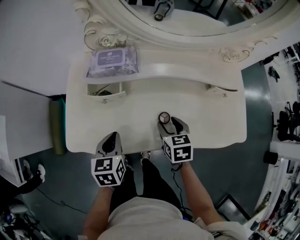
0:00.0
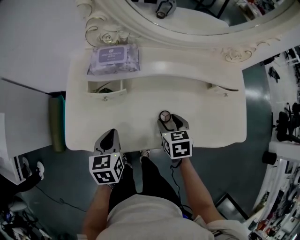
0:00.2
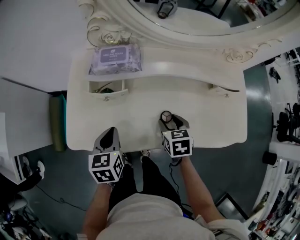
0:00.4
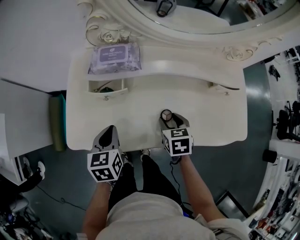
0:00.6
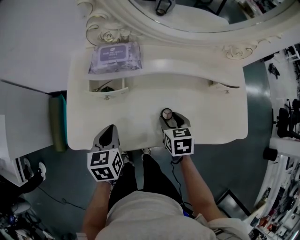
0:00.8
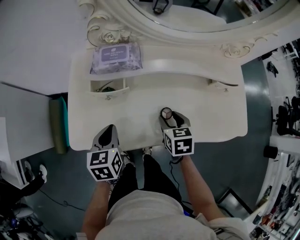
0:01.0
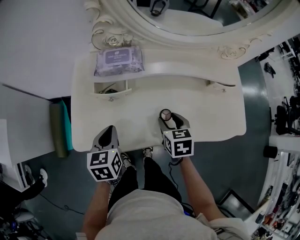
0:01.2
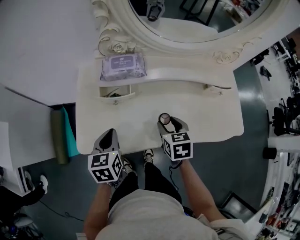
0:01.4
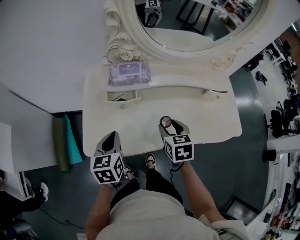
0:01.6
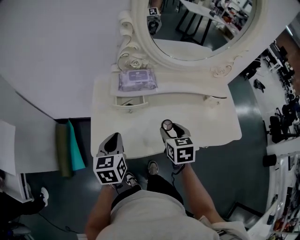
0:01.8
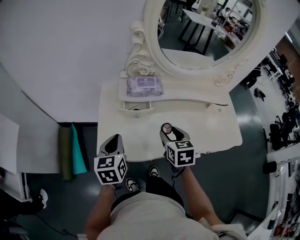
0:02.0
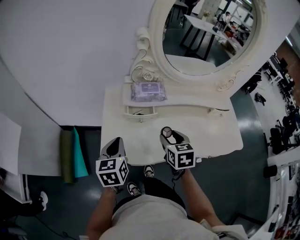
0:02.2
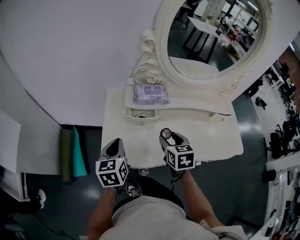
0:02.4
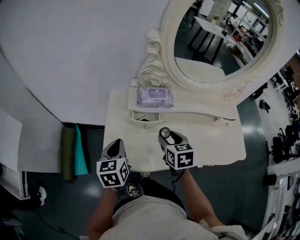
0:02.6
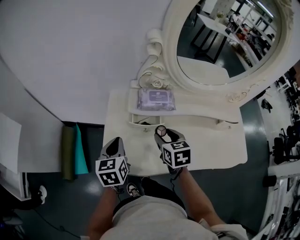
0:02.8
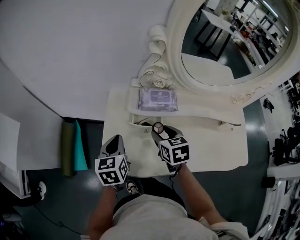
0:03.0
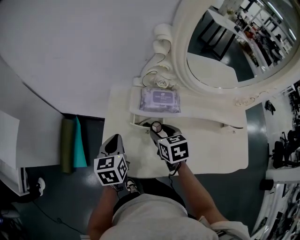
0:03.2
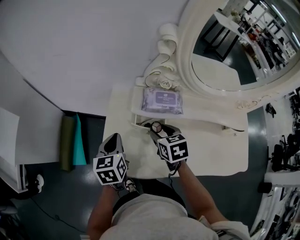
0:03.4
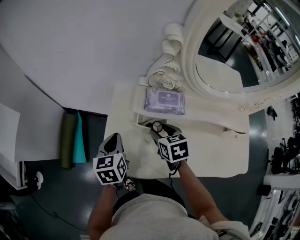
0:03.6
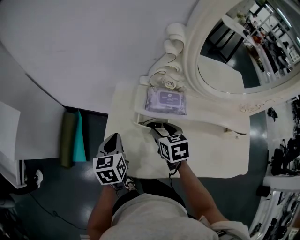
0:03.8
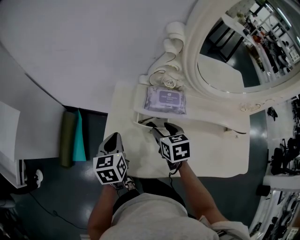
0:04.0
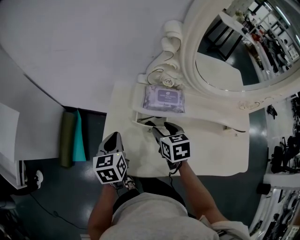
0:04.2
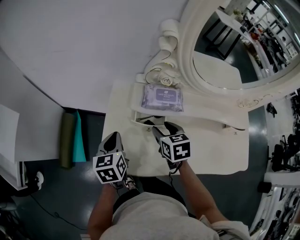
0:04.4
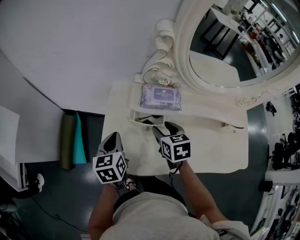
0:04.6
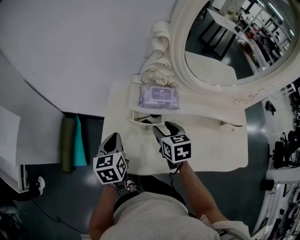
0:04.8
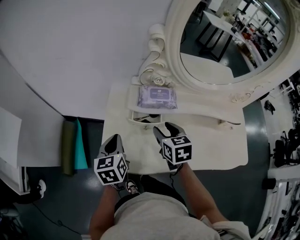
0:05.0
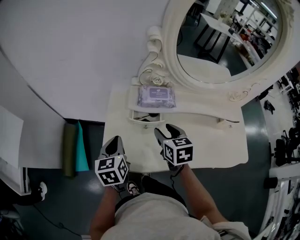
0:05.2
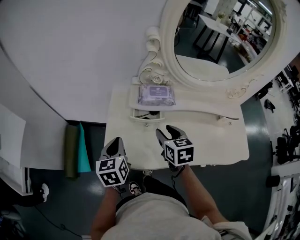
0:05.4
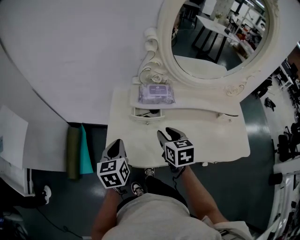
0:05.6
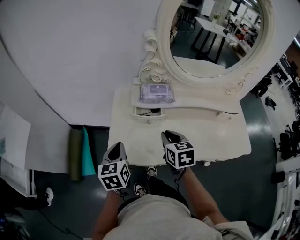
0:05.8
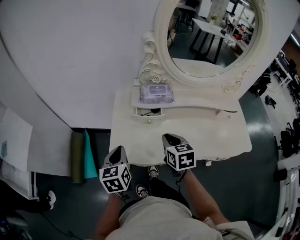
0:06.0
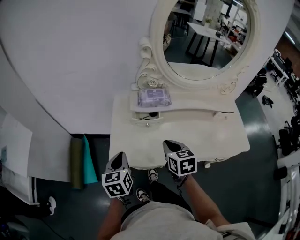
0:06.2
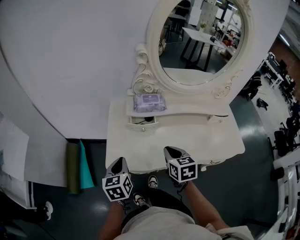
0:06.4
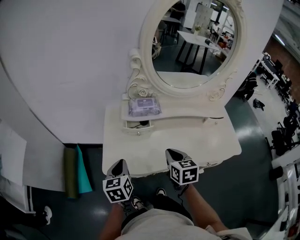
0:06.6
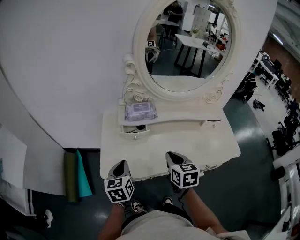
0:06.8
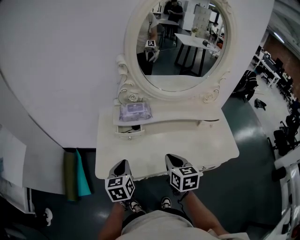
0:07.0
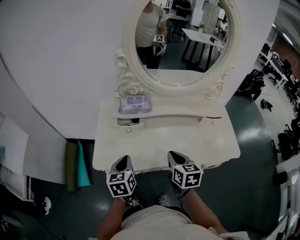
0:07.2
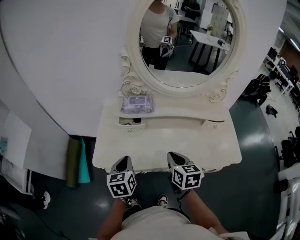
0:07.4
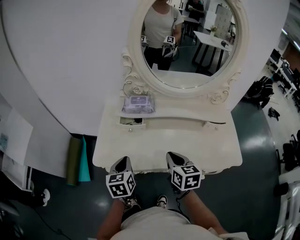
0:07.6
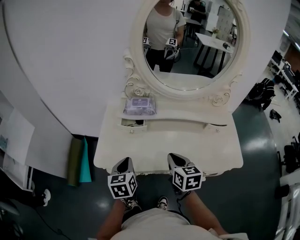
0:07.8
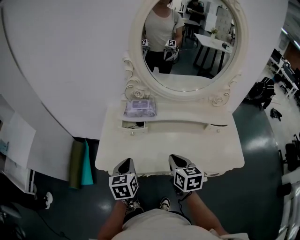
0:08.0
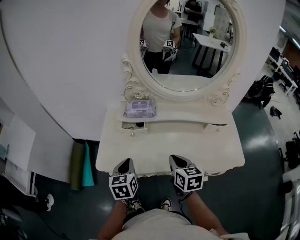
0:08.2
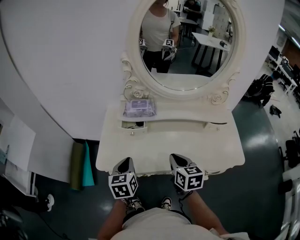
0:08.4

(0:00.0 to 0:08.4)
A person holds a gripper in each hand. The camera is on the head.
0:00.0 - 0:01.4: The right gripper shifts by about 5 cm; the left gripper goes roughly 5 cm to the left.
0:01.4 - 0:02.8: The right gripper is displaced to the left, forward and upward by roughly 15 cm; the left gripper shifts some 10 cm to the left.
0:02.8 - 0:04.2: The right gripper shifts roughly 5 cm forward.
0:04.2 - 0:05.6: The right gripper heads backward and upward, covering some 10 cm; the left gripper travels backward by about 10 cm.
0:05.6 - 0:07.0: The right gripper heads backward and to the right, covering roughly 15 cm, and closes. The left gripper heads to the right, covering roughly 10 cm.
0:07.0 - 0:08.4: The grippers make only small movements.

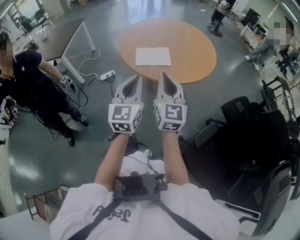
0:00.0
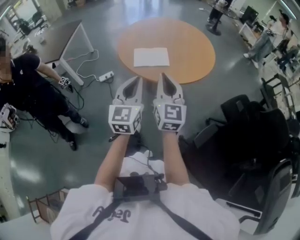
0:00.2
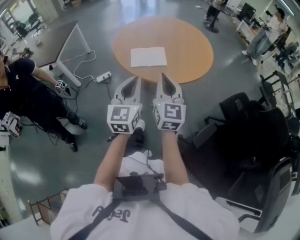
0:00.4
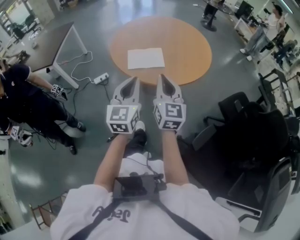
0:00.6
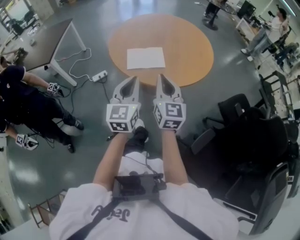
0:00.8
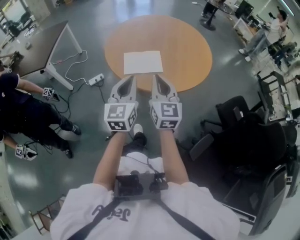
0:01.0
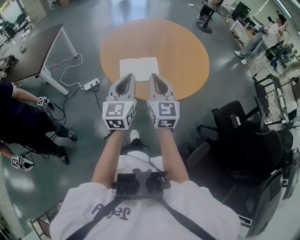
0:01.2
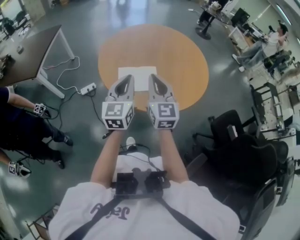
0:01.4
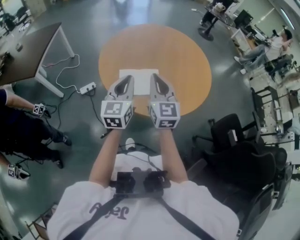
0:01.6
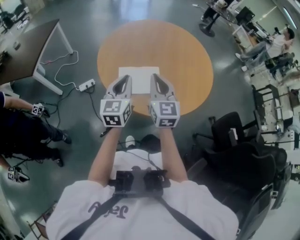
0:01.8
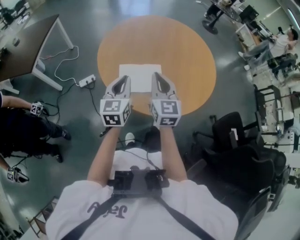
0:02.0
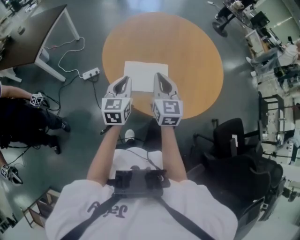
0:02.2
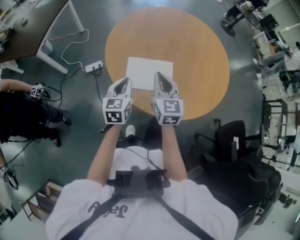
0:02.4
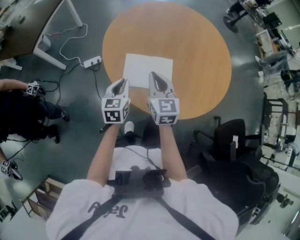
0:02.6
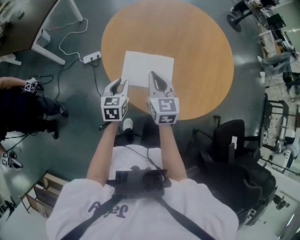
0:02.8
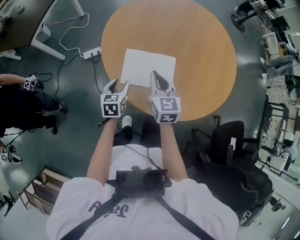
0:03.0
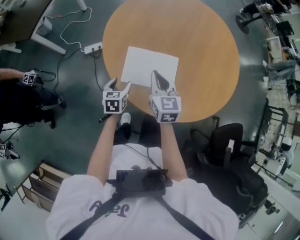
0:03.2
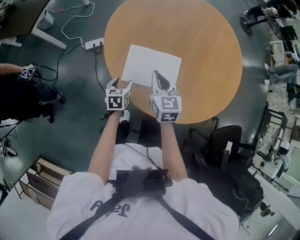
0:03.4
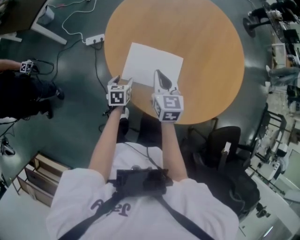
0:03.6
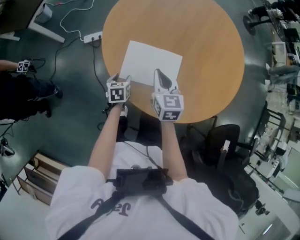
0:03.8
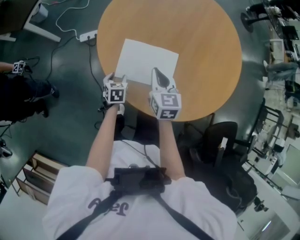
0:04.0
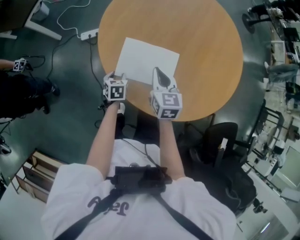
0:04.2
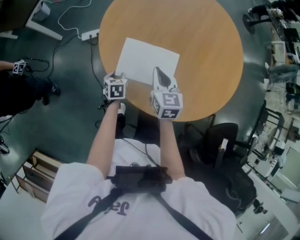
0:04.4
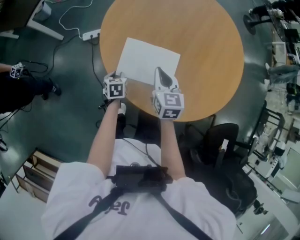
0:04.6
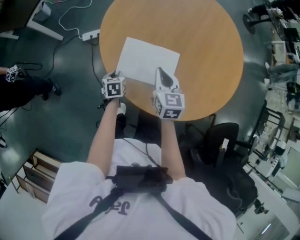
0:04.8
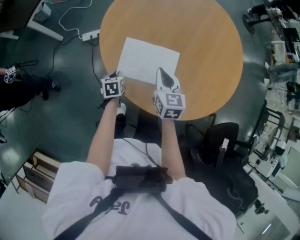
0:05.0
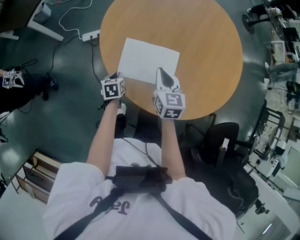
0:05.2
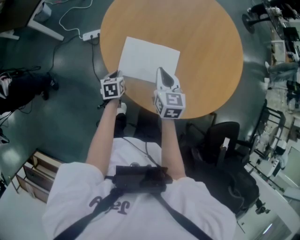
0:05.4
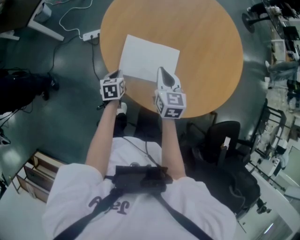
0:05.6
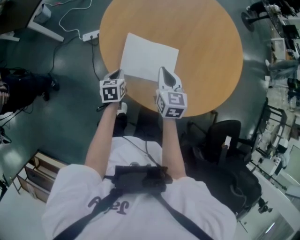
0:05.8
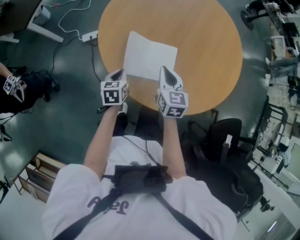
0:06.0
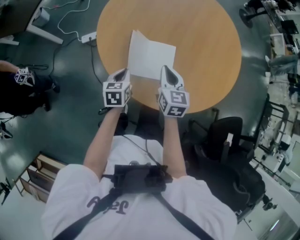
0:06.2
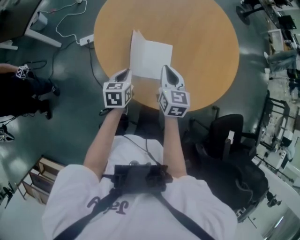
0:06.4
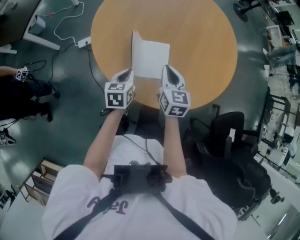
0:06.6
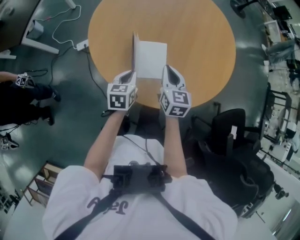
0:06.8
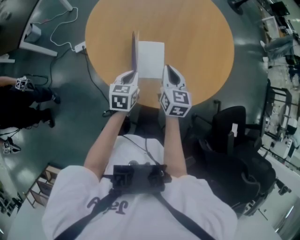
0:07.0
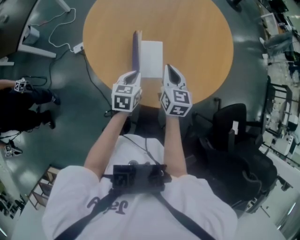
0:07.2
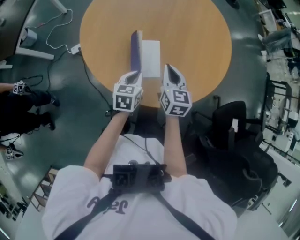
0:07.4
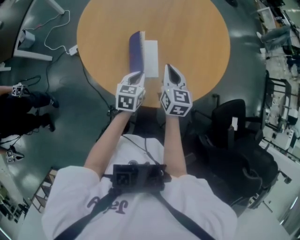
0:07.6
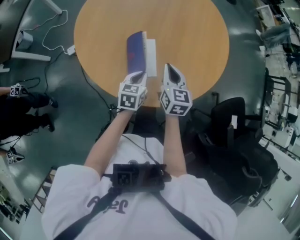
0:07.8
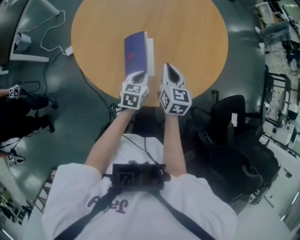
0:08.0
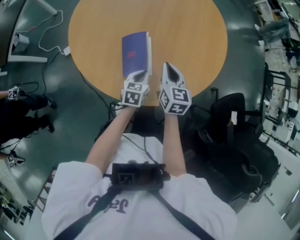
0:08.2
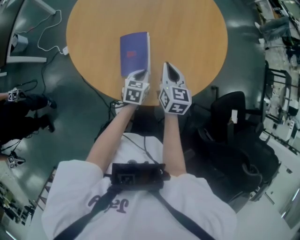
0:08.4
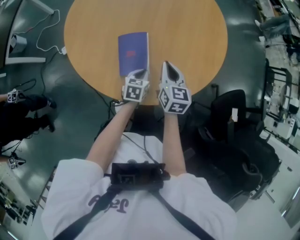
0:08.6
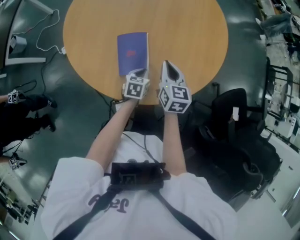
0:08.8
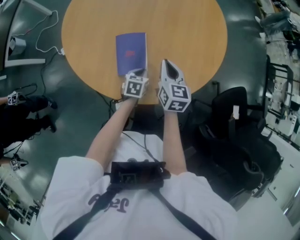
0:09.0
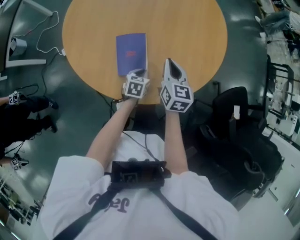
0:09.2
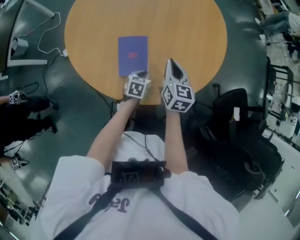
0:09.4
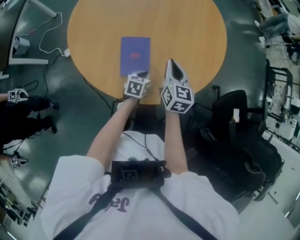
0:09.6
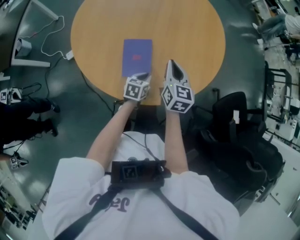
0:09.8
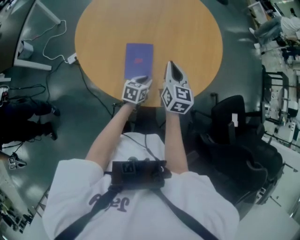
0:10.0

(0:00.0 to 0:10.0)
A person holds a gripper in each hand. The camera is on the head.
0:00.0 - 0:01.4: The grippers both shift forward by about 25 cm.
0:01.4 - 0:02.8: The right gripper is displaced downward and forward by some 20 cm, and changes its angle by about 20 degrees; the left gripper goes about 25 cm downward, and tips its fingers downward by roughly 30 degrees.
0:02.8 - 0:04.2: The left gripper travels downward by some 15 cm, rotates some 30 degrees, and opens its fingers, while the right gripper shifts roughly 5 cm downward.
0:04.2 - 0:05.8: The left gripper moves upward, some 5 cm, and closes.
0:05.8 - 0:07.2: The left gripper shifts some 15 cm to the right and upward, and turns by roughly 20 degrees. The right gripper goes about 10 cm to the right.
0:07.2 - 0:08.6: The right gripper shifts about 5 cm to the right, while the left gripper goes roughly 15 cm downward and to the right.
0:08.6 - 0:10.0: The right gripper shifts approximately 5 cm upward.

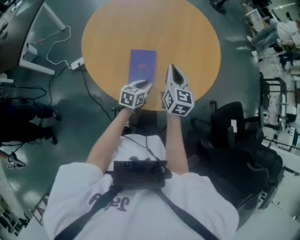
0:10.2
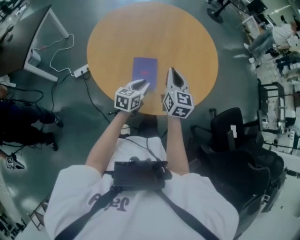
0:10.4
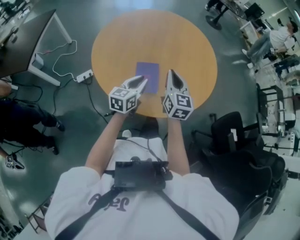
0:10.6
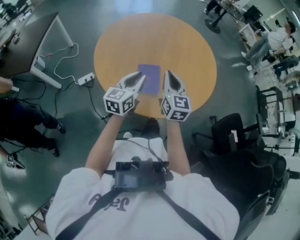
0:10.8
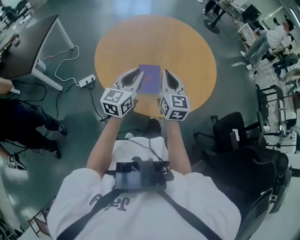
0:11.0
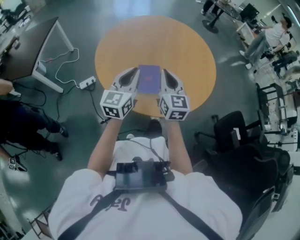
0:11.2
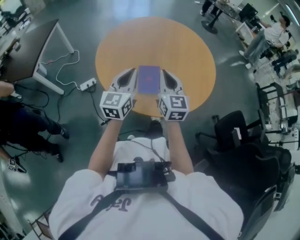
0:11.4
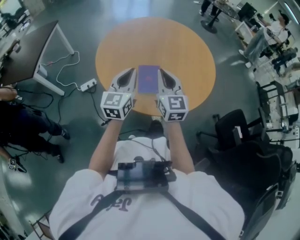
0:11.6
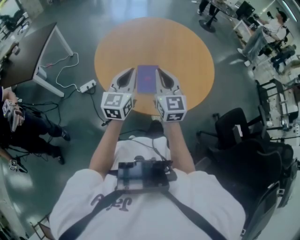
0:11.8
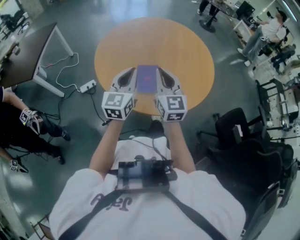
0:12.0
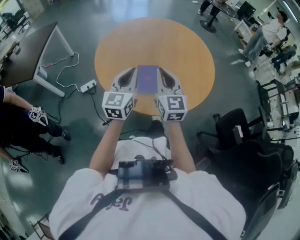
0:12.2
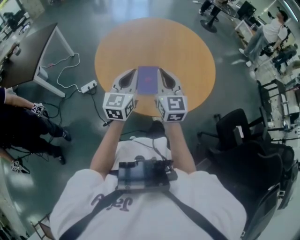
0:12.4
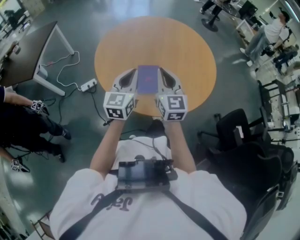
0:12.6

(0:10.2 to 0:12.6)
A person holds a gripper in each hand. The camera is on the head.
0:10.2 - 0:11.4: The right gripper goes roughly 15 cm upward, to the left and backward, while the left gripper heads upward and to the left, covering roughly 30 cm, and angles its fingers upward, by about 30 degrees.
0:11.4 - 0:12.6: The grippers stay close to where they were, moving slightly.

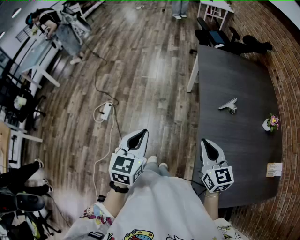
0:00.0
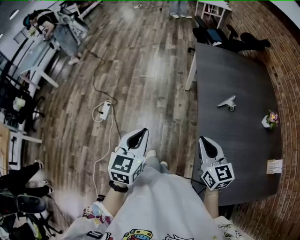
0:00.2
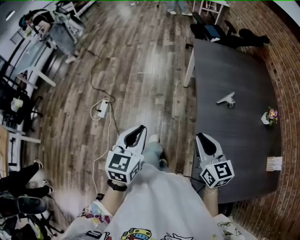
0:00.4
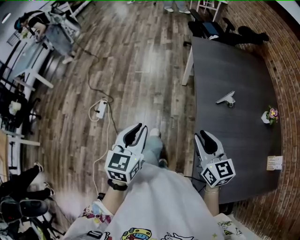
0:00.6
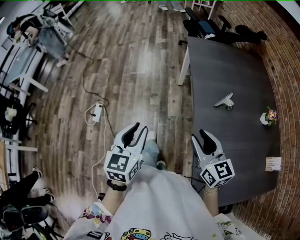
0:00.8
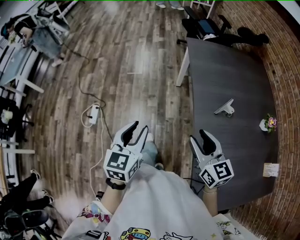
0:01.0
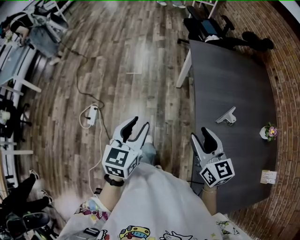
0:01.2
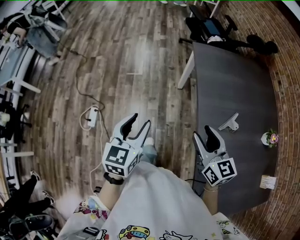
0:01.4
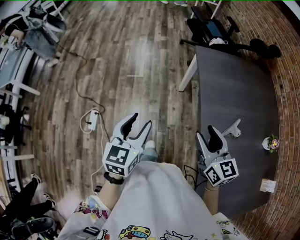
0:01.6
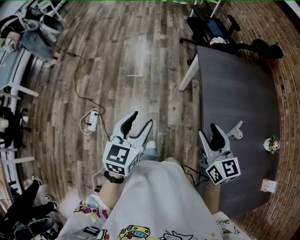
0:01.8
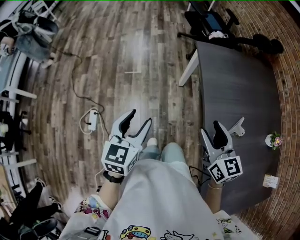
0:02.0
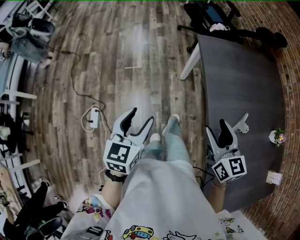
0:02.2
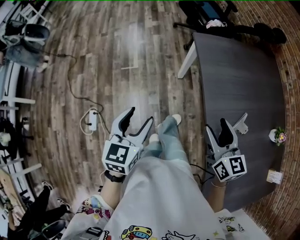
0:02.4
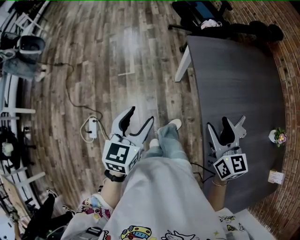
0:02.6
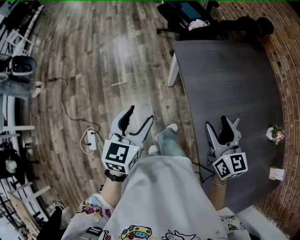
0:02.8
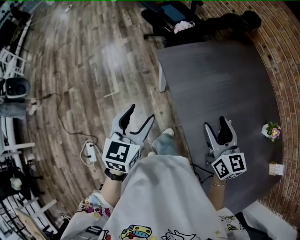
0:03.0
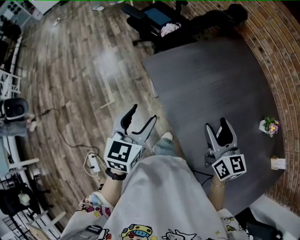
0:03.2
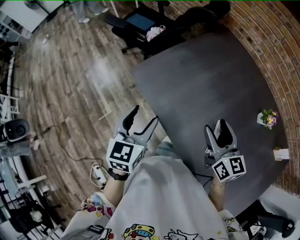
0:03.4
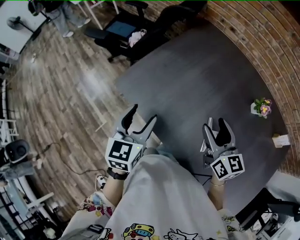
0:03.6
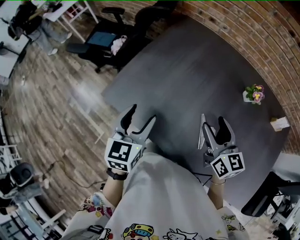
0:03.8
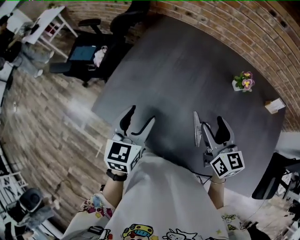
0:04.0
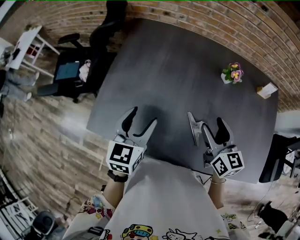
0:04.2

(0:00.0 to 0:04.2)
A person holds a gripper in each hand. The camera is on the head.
0:00.0 - 0:01.4: The two grippers go roughly 20 cm forward. The left gripper opens. The right gripper opens.
0:01.4 - 0:02.8: Both grippers move forward, roughly 20 cm.
0:02.8 - 0:04.2: The right gripper ends up roughly 20 cm from where it was, and turns by roughly 60 degrees. Meanwhile the left gripper changes place by some 35 cm, and rotates roughly 60 degrees.
